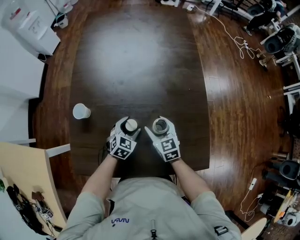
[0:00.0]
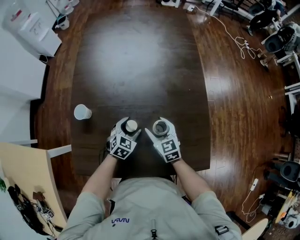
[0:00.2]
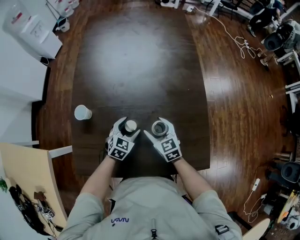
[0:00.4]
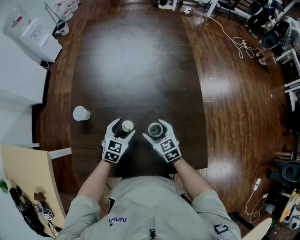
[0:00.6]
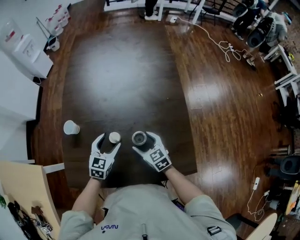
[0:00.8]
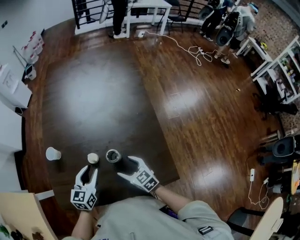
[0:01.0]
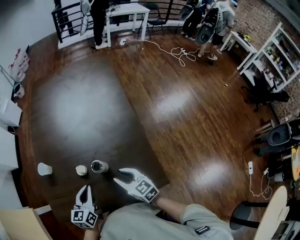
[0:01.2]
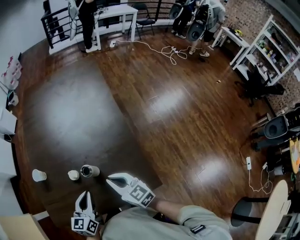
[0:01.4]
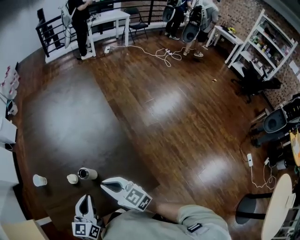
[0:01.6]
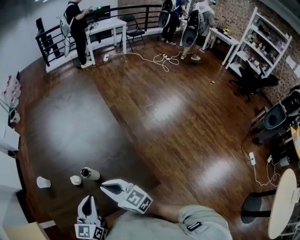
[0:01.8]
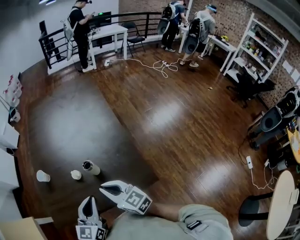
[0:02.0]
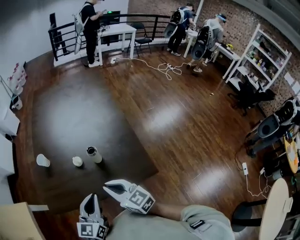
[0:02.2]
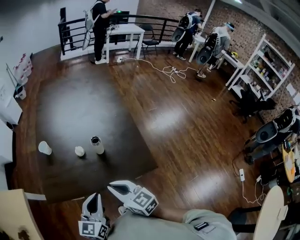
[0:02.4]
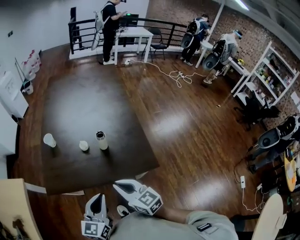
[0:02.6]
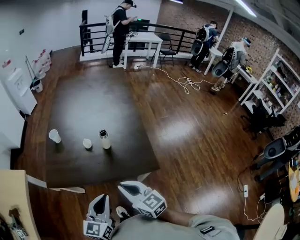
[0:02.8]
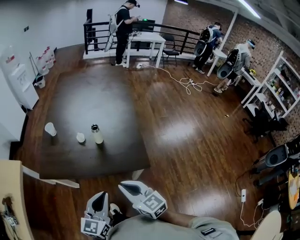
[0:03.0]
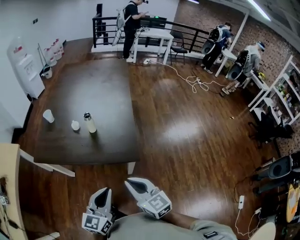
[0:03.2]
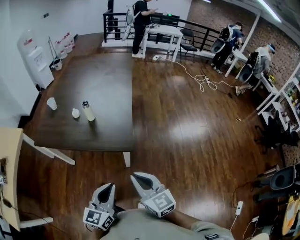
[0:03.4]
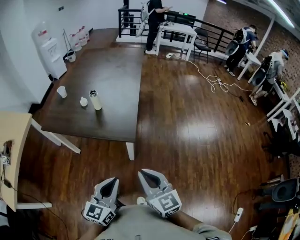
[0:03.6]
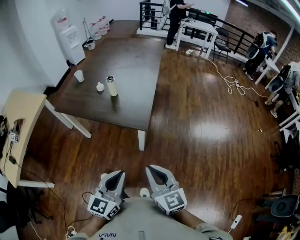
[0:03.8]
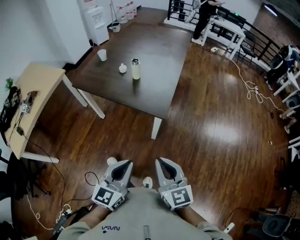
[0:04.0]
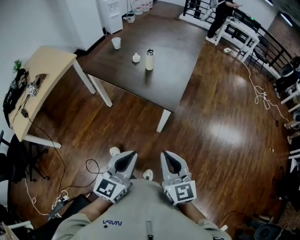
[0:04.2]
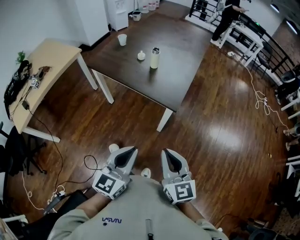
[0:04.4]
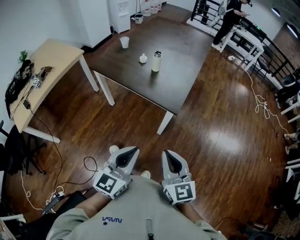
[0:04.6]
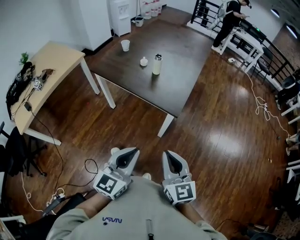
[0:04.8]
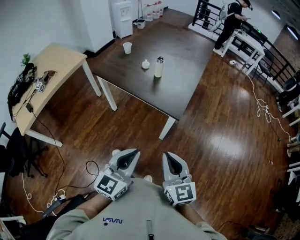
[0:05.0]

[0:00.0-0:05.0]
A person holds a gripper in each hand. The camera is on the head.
0:00.0 to 0:01.6: The two grippers go roughly 20 cm upward and backward. The left gripper swivels approximately 40 degrees, and closes, while the right gripper changes its angle by some 20 degrees, and closes up.
0:01.6 to 0:03.4: Both grippers travel together backward and to the right, approximately 35 cm.
0:03.4 to 0:05.0: Both grippers travel together backward, some 10 cm.

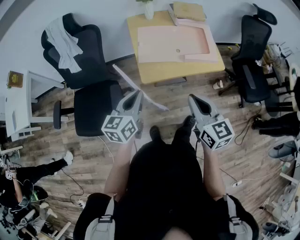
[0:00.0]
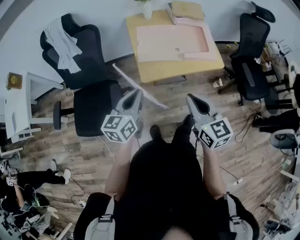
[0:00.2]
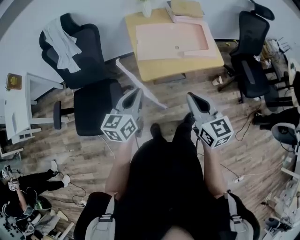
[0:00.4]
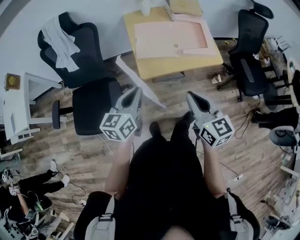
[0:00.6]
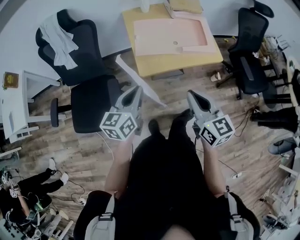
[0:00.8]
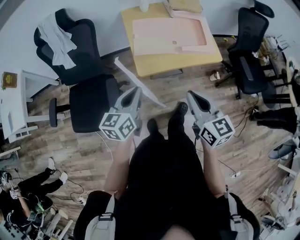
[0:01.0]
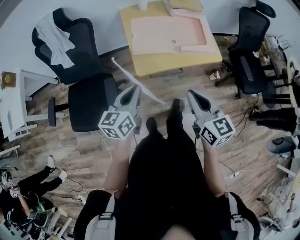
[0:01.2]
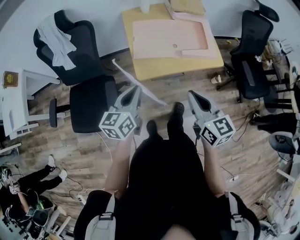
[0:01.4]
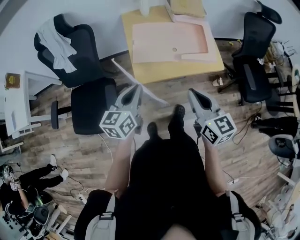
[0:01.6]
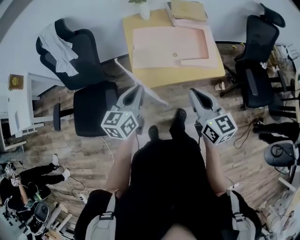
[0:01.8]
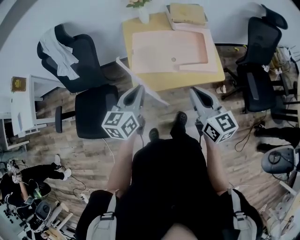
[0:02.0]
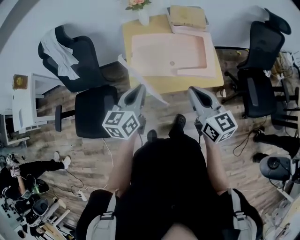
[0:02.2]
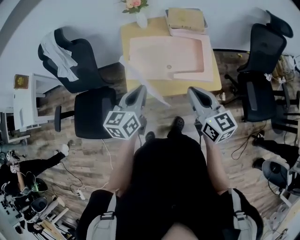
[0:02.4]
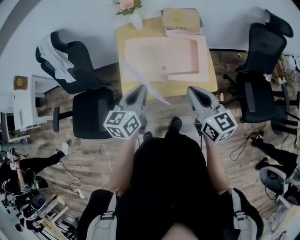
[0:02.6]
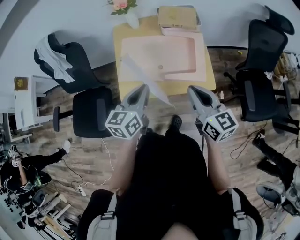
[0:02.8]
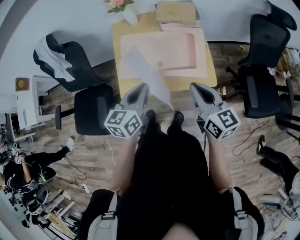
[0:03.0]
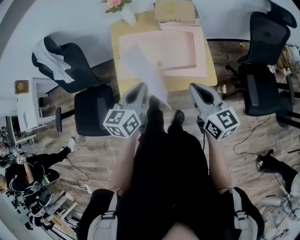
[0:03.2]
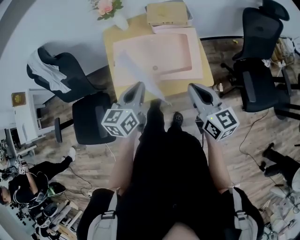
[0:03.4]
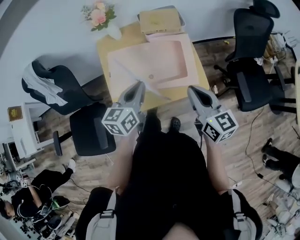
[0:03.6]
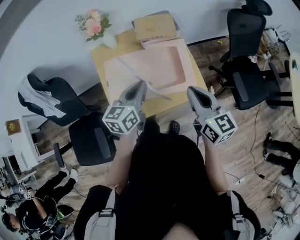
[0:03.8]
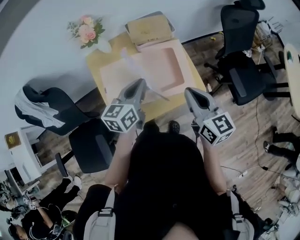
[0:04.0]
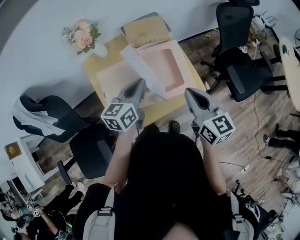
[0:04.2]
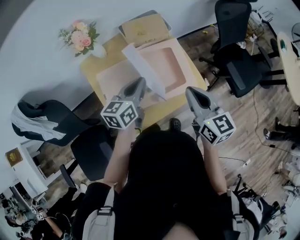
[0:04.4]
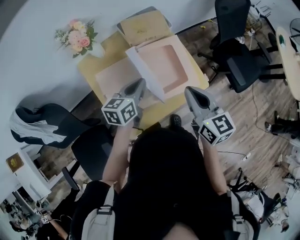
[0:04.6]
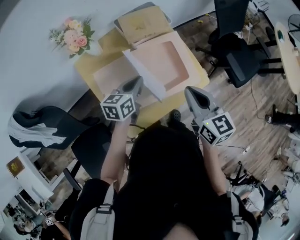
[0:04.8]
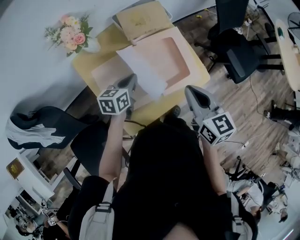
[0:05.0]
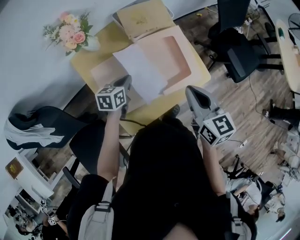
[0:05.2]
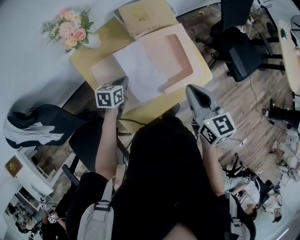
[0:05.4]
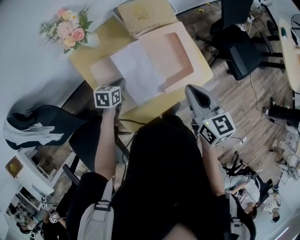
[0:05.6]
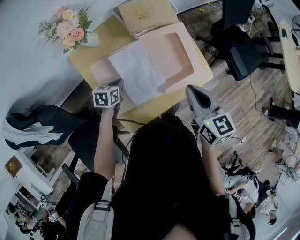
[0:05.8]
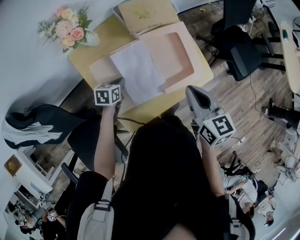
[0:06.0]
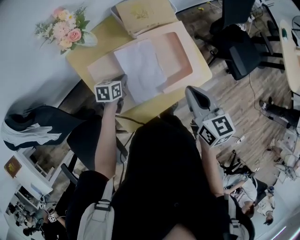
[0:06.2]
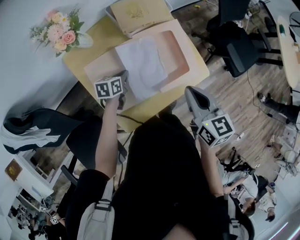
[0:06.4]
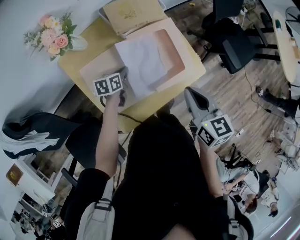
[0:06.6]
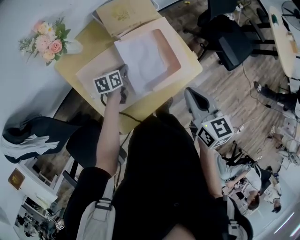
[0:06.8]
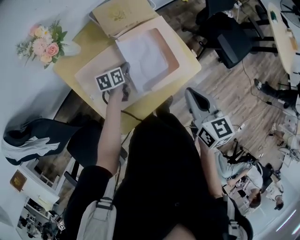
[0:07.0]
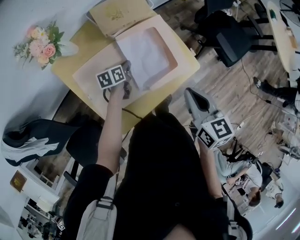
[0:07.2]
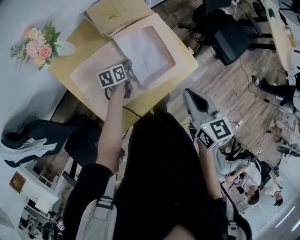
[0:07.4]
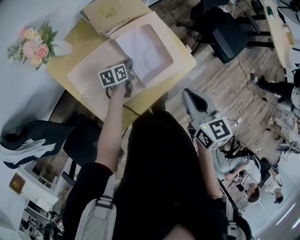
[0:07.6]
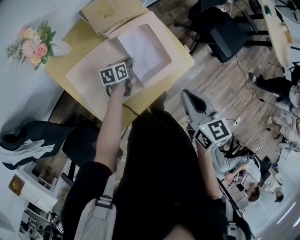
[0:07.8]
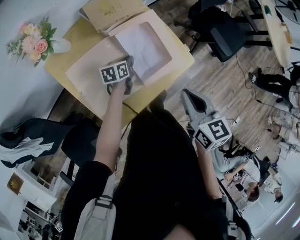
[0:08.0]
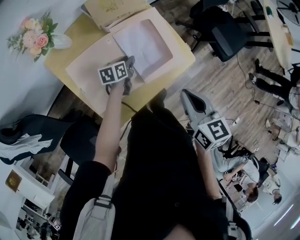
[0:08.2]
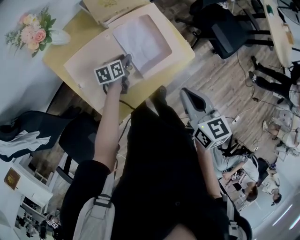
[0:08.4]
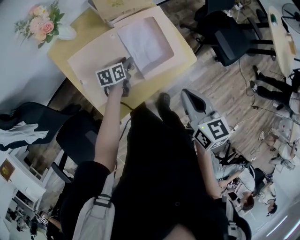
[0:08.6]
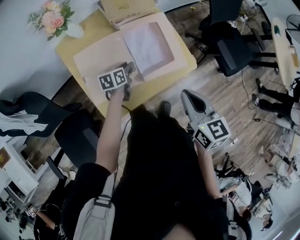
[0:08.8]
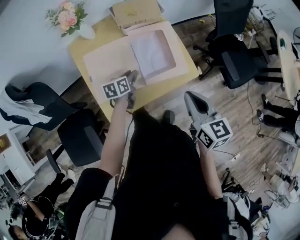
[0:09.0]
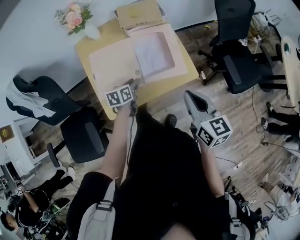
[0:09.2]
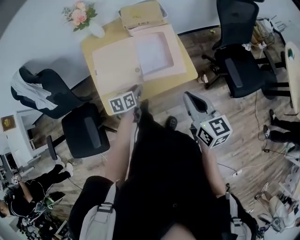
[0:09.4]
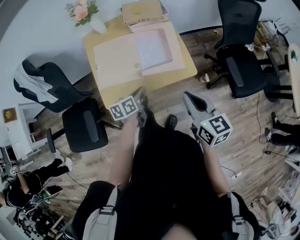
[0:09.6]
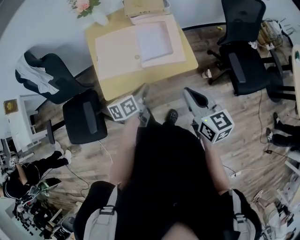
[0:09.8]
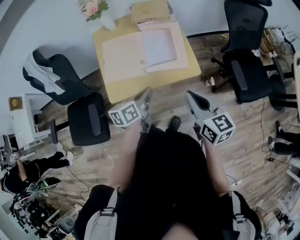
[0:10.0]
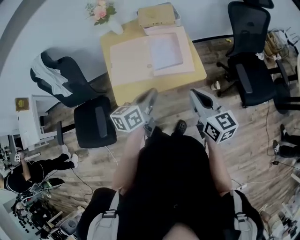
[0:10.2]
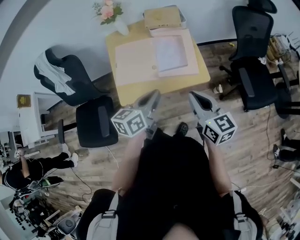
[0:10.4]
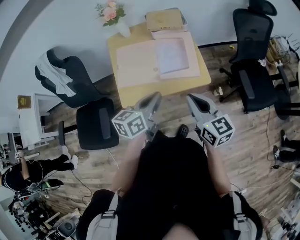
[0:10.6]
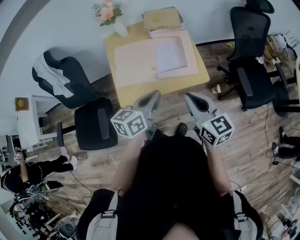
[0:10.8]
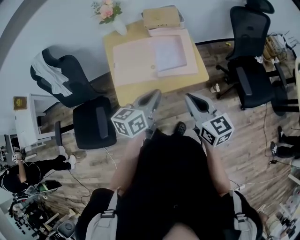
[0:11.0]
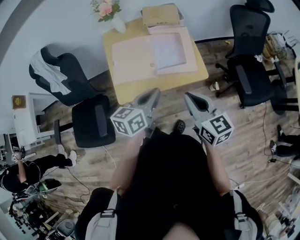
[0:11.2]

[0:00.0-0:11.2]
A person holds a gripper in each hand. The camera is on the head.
0:00.0 to 0:01.6: Both grippers travel together forward, roughly 5 cm.
0:01.6 to 0:03.2: Both grippers move to the right and forward, about 25 cm.
0:03.2 to 0:04.8: The right gripper moves about 15 cm, and swivels roughly 30 degrees, while the left gripper ends up approximately 25 cm from where it was, and changes its angle by roughly 30 degrees.
0:04.8 to 0:06.4: The left gripper travels downward by about 15 cm, and swivels approximately 20 degrees.
0:06.4 to 0:08.0: The left gripper is displaced to the right and forward by approximately 15 cm. Meanwhile the right gripper is displaced to the right by about 5 cm.
0:08.0 to 0:09.6: The right gripper changes place by roughly 15 cm, and changes its angle by roughly 30 degrees. Meanwhile the left gripper shifts by about 25 cm, changes its angle by some 30 degrees, and opens, then closes again.
0:09.6 to 0:11.2: The left gripper goes roughly 15 cm upward, and changes its angle by approximately 20 degrees, while the right gripper goes about 5 cm to the left.

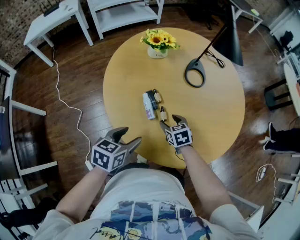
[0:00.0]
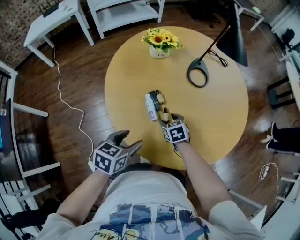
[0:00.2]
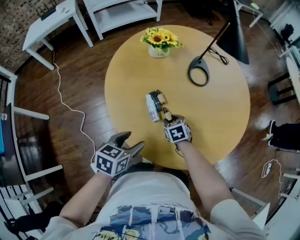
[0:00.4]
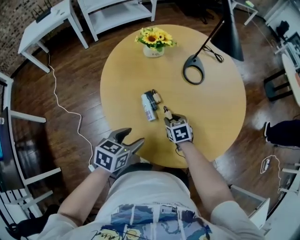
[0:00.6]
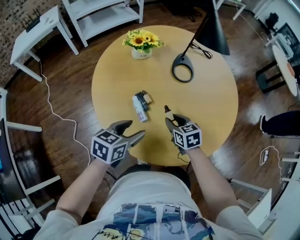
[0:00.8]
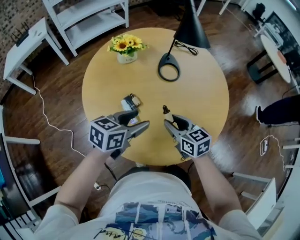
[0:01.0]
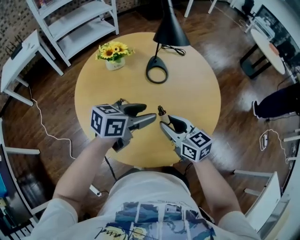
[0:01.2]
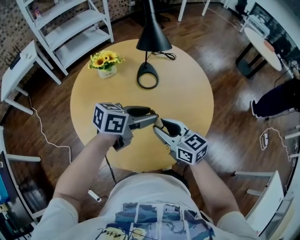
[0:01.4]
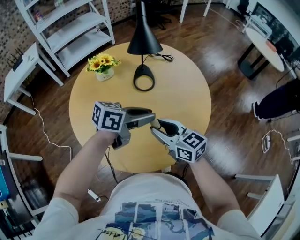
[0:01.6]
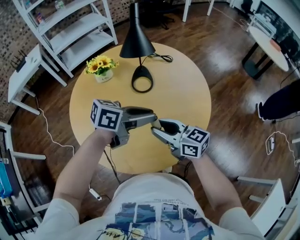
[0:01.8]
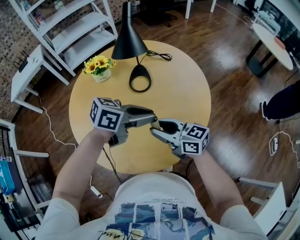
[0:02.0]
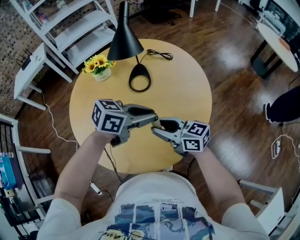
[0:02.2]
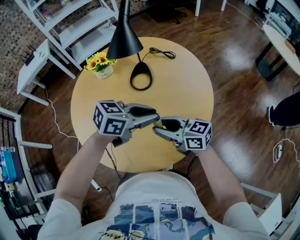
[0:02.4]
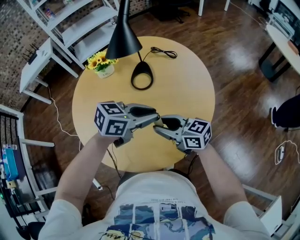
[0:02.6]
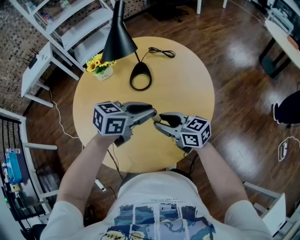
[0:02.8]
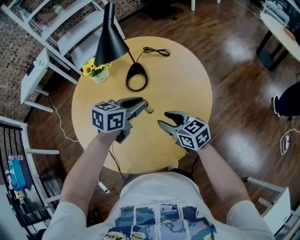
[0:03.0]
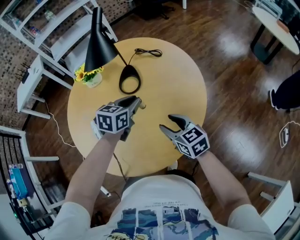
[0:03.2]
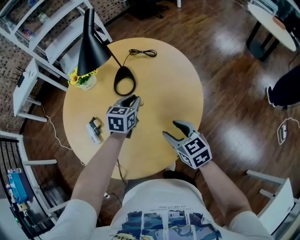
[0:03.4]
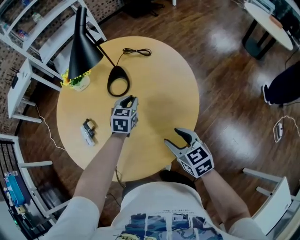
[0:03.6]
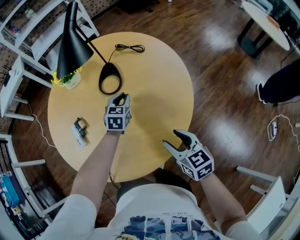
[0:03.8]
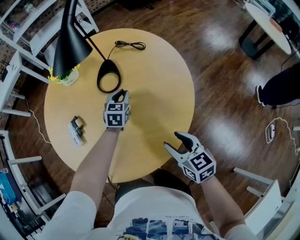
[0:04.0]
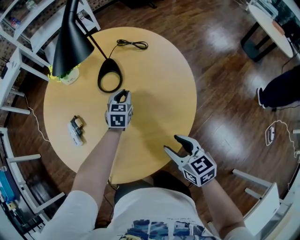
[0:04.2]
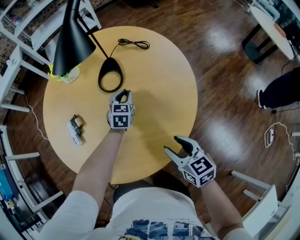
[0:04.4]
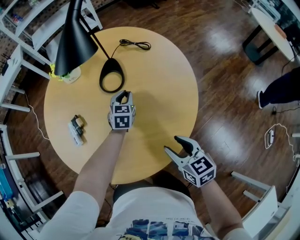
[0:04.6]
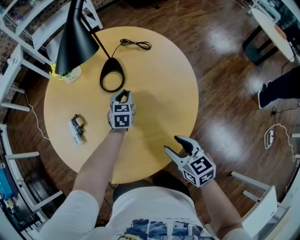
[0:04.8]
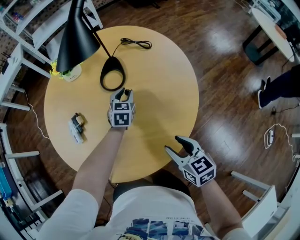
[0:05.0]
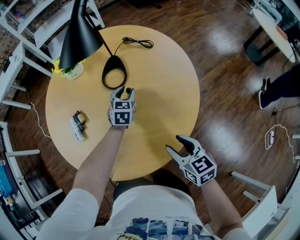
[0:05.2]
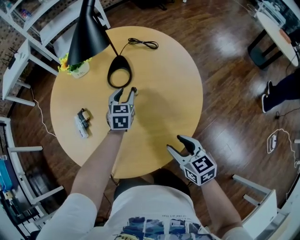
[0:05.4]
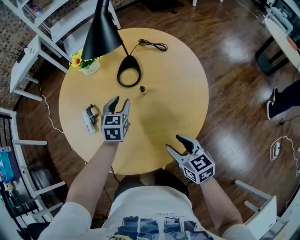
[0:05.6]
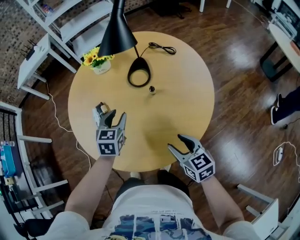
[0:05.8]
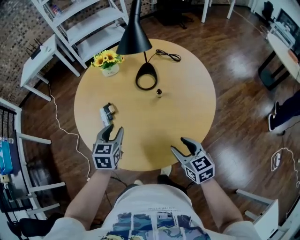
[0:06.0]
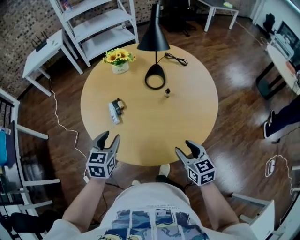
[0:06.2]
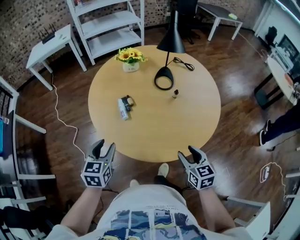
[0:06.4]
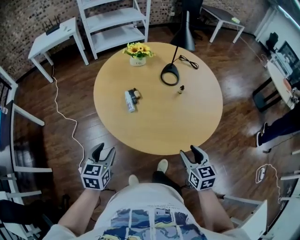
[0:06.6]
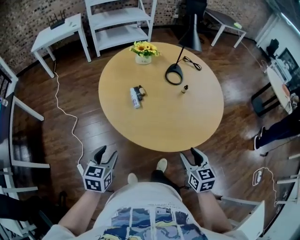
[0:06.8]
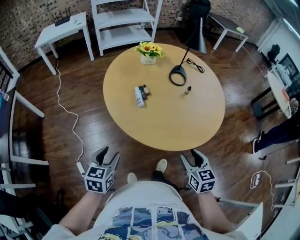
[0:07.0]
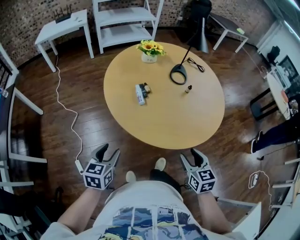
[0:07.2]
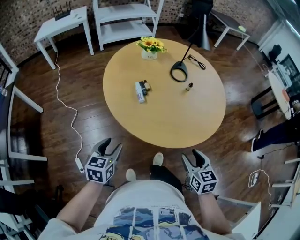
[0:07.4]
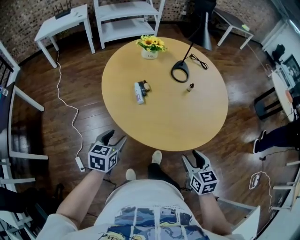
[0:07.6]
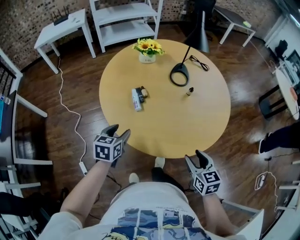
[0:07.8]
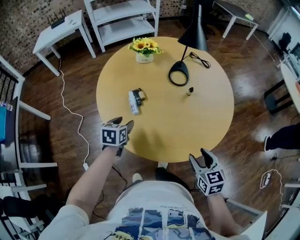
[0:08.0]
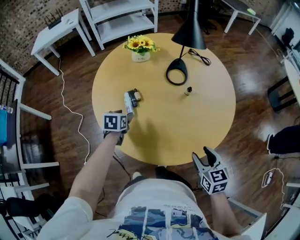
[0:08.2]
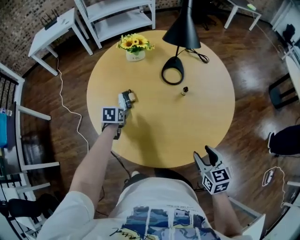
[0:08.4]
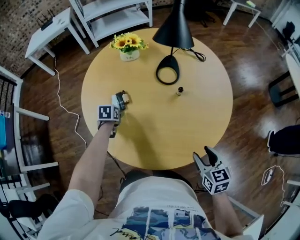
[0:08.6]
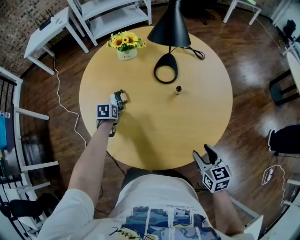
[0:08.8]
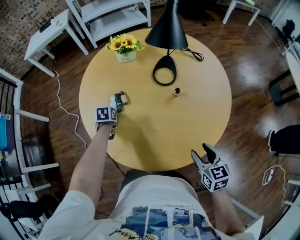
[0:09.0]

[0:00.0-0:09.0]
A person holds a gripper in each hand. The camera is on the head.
0:00.0 to 0:01.6: The left gripper is displaced to the right, forward and upward by about 35 cm, rotates some 40 degrees, and closes, while the right gripper is displaced upward and to the right by roughly 30 cm, angles its fingers upward, by approximately 40 degrees, and closes up.
0:01.6 to 0:03.0: The left gripper moves roughly 15 cm, and changes its angle by some 30 degrees. Meanwhile the right gripper changes place by some 15 cm.
0:03.0 to 0:04.4: The right gripper travels to the right, backward and downward by roughly 15 cm. The left gripper moves downward and forward, roughly 25 cm, and rotates some 30 degrees.
0:04.4 to 0:06.0: The right gripper shifts about 10 cm to the left, while the left gripper travels to the left, backward and upward by some 35 cm.
0:06.0 to 0:07.6: Both grippers move to the left and backward, about 25 cm.
0:07.6 to 0:09.0: The right gripper is displaced to the right and forward by roughly 25 cm. Meanwhile the left gripper heads forward and downward, covering some 35 cm, and angles its fingers downward, by roughly 30 degrees.
